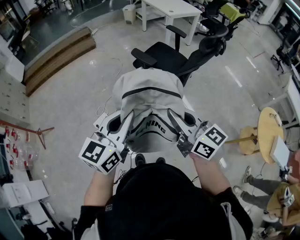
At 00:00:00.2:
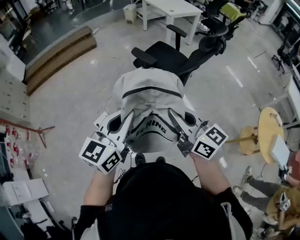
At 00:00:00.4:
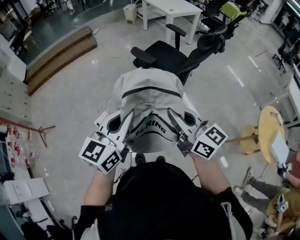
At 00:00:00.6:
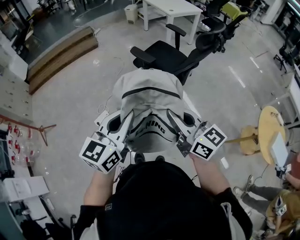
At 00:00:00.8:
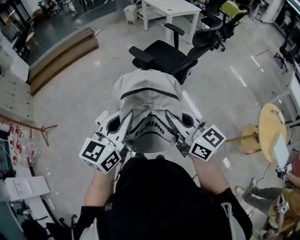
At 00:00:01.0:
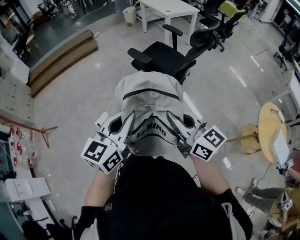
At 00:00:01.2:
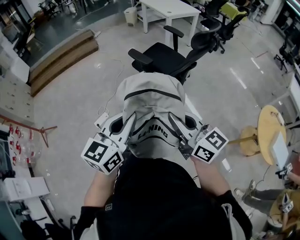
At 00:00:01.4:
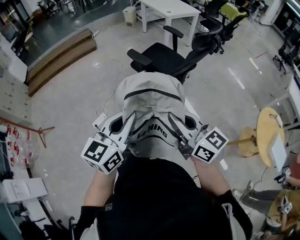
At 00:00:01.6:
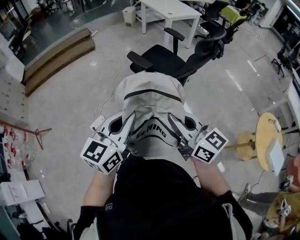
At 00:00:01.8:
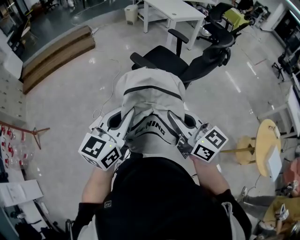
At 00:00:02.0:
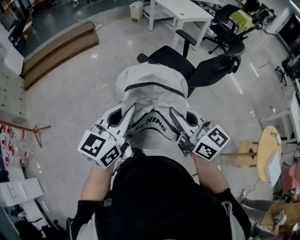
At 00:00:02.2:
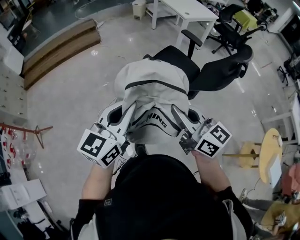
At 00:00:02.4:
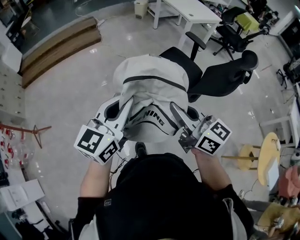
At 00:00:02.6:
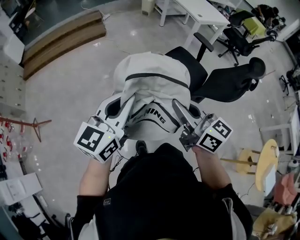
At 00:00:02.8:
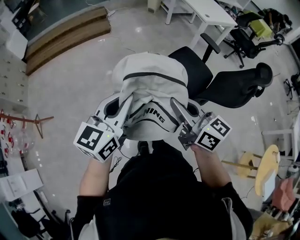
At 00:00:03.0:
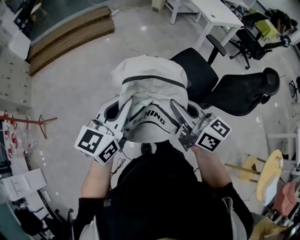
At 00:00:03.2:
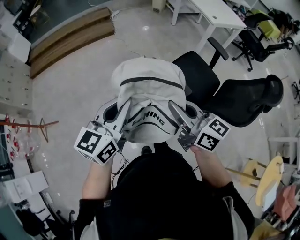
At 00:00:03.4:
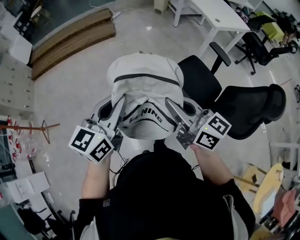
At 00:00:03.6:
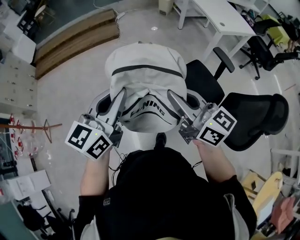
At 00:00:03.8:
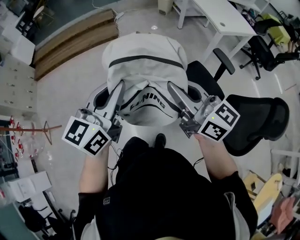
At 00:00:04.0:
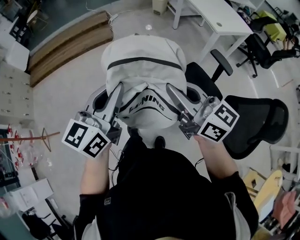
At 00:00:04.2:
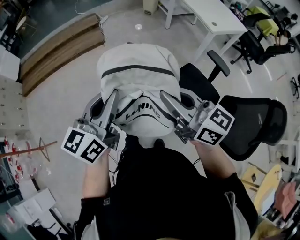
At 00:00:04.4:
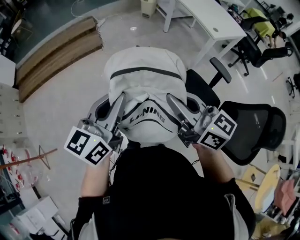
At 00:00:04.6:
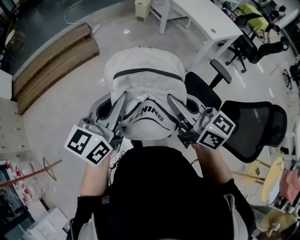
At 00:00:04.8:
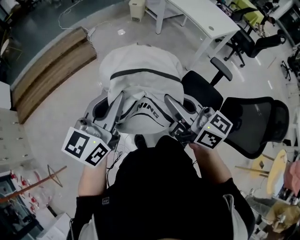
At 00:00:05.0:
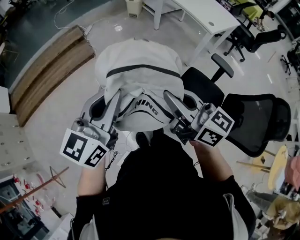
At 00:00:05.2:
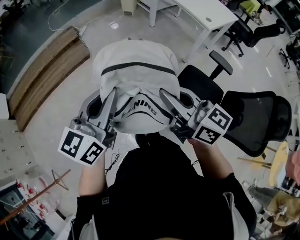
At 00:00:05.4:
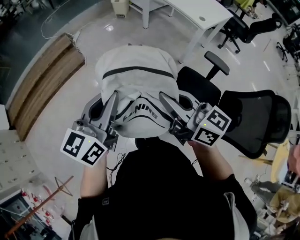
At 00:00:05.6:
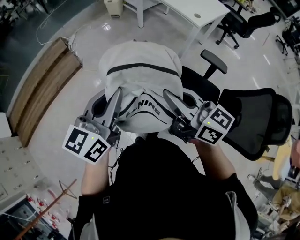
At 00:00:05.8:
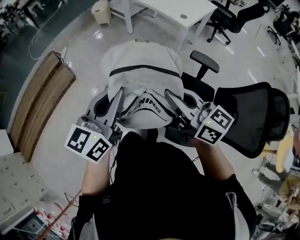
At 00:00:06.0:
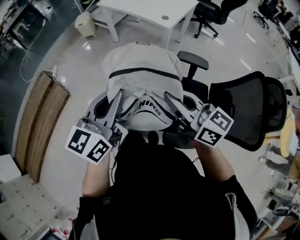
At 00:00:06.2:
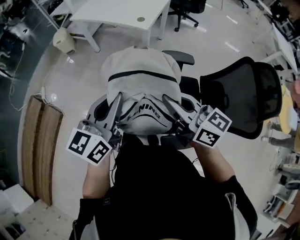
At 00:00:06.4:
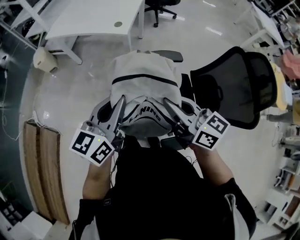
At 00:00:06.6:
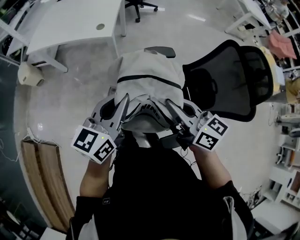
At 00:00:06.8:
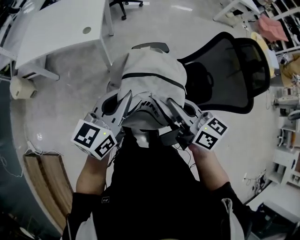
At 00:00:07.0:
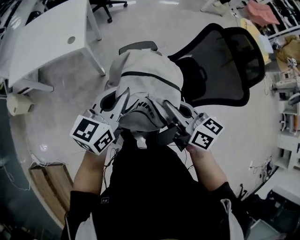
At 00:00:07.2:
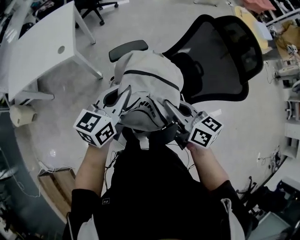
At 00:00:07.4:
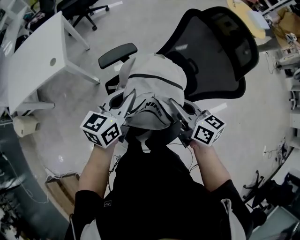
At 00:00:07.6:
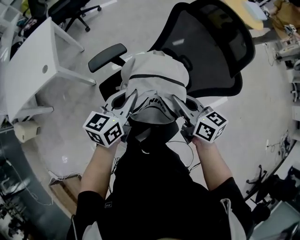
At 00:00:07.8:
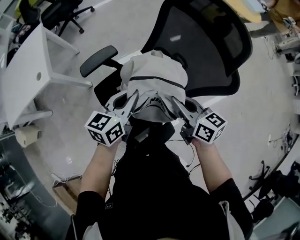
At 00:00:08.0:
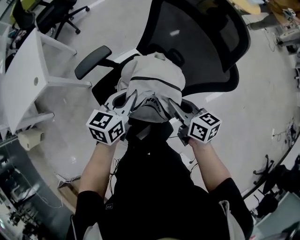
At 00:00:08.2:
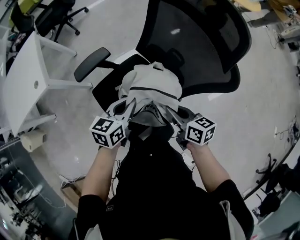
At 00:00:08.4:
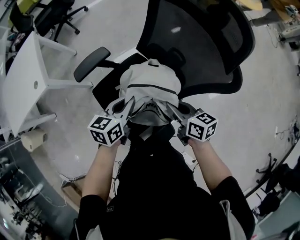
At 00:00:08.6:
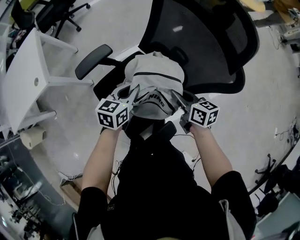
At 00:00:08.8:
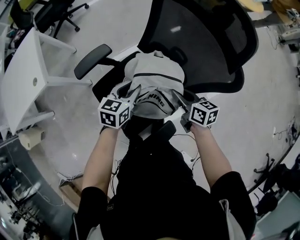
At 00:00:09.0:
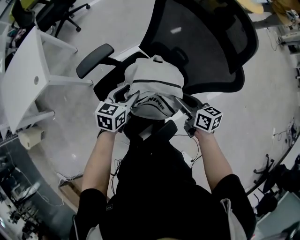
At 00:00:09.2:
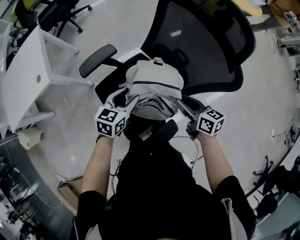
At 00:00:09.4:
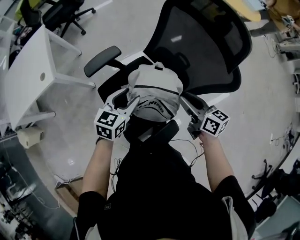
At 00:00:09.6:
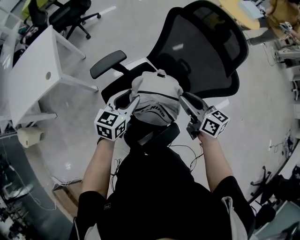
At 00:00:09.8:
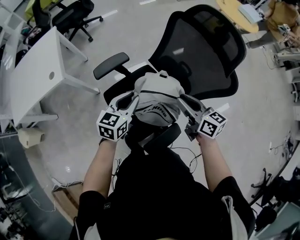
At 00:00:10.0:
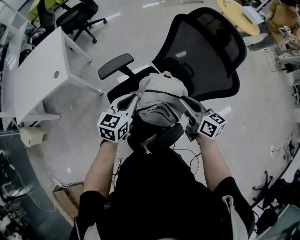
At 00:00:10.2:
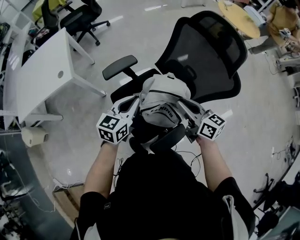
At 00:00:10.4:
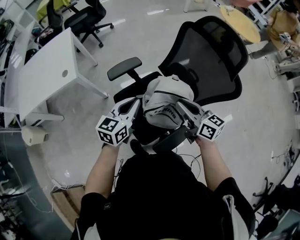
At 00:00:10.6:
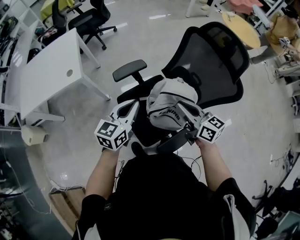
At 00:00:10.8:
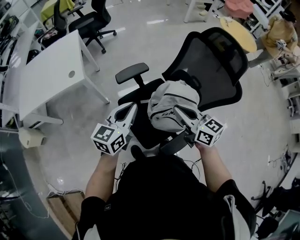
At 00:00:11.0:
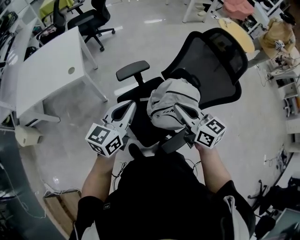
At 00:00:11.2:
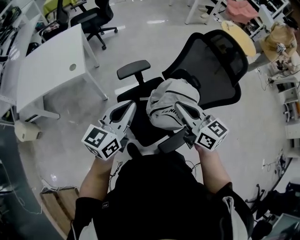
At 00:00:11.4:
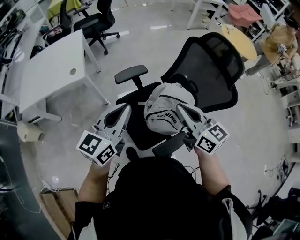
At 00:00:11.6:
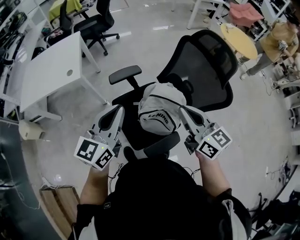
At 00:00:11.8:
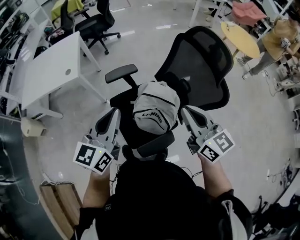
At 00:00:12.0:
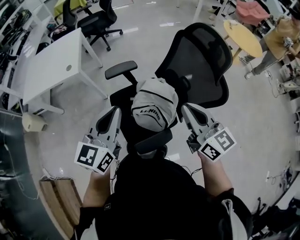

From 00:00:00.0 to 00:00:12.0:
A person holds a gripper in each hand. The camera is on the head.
From 00:00:00.0 to 00:00:01.6: Both grippers travel together to the right, some 5 cm.
From 00:00:01.6 to 00:00:03.0: The grippers both shift forward and to the left by about 40 cm.
From 00:00:03.0 to 00:00:04.4: The two grippers go some 35 cm forward.
From 00:00:04.4 to 00:00:06.0: The left gripper changes place by about 35 cm, and changes its angle by roughly 30 degrees. Meanwhile the right gripper shifts by about 25 cm, and turns by about 30 degrees.
From 00:00:06.0 to 00:00:07.6: The right gripper changes place by roughly 35 cm, and turns by about 70 degrees. The left gripper ends up some 40 cm from where it was, and rotates about 70 degrees.
From 00:00:07.6 to 00:00:09.0: The right gripper moves downward and to the right, approximately 15 cm, and opens its fingers. Meanwhile the left gripper shifts about 15 cm downward, rotates approximately 20 degrees, and opens its fingers.
From 00:00:09.0 to 00:00:10.4: The left gripper goes about 20 cm upward, to the left and backward, and closes. The right gripper goes roughly 20 cm upward and to the left, and swivels approximately 20 degrees.
From 00:00:10.4 to 00:00:12.0: The right gripper goes approximately 15 cm upward, to the right and backward, and changes its angle by about 20 degrees, while the left gripper travels upward and backward by roughly 20 cm, and swivels about 20 degrees.

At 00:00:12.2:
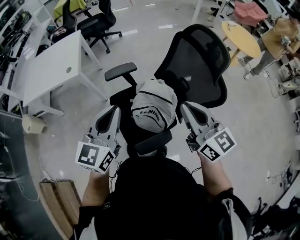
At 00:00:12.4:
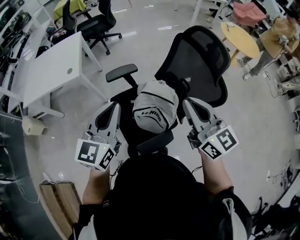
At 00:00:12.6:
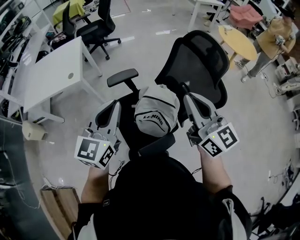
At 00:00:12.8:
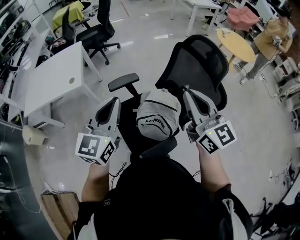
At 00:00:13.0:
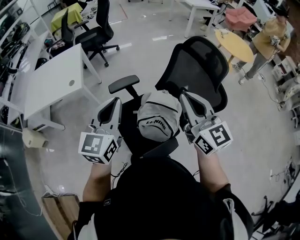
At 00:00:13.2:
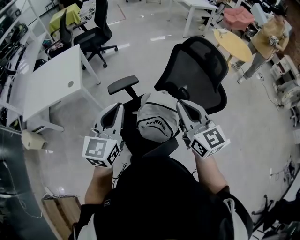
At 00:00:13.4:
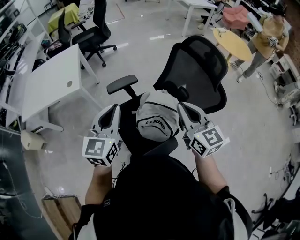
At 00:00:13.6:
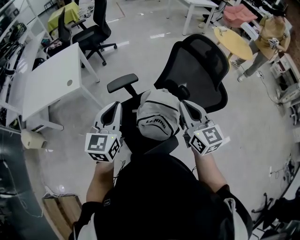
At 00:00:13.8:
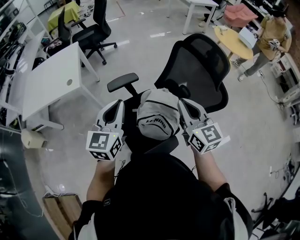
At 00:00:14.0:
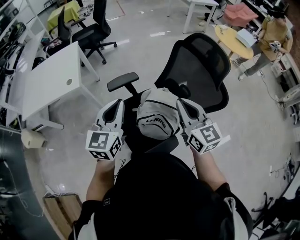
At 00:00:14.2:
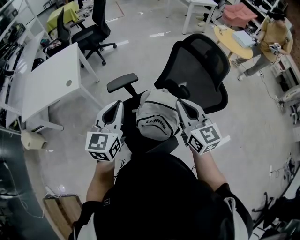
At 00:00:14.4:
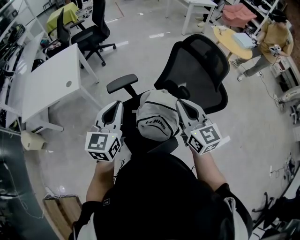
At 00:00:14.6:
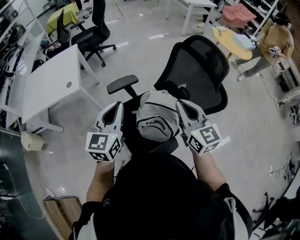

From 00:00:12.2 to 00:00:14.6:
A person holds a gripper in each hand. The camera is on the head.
From 00:00:12.2 to 00:00:13.4: The right gripper travels upward and back again, some 5 cm each way; the left gripper is displaced to the left by approximately 5 cm.
From 00:00:13.4 to 00:00:14.6: There are only small adjustments of the grippers.

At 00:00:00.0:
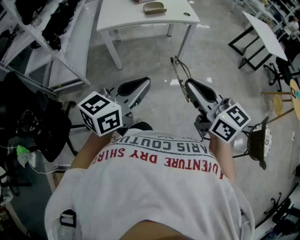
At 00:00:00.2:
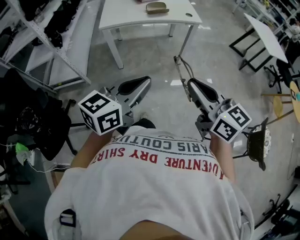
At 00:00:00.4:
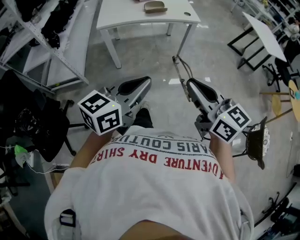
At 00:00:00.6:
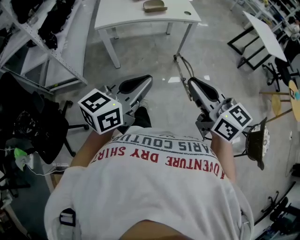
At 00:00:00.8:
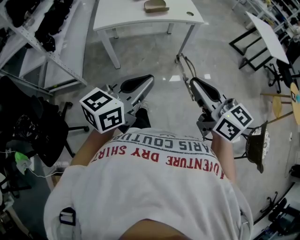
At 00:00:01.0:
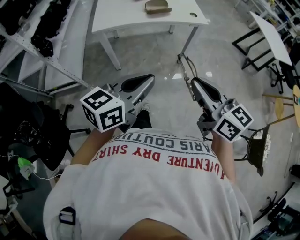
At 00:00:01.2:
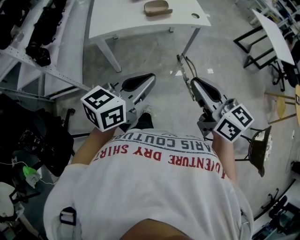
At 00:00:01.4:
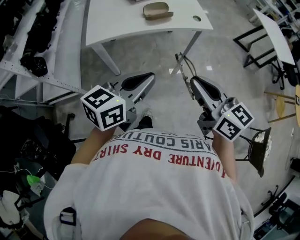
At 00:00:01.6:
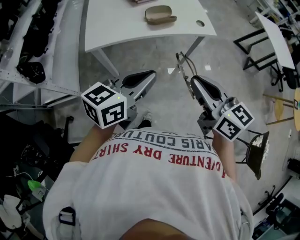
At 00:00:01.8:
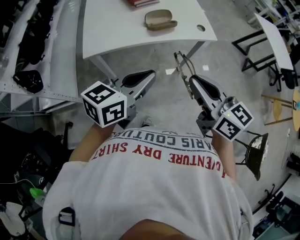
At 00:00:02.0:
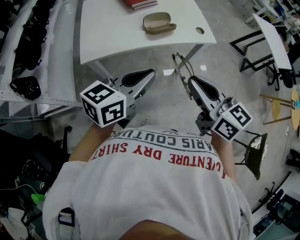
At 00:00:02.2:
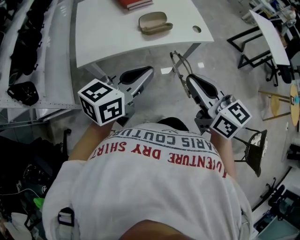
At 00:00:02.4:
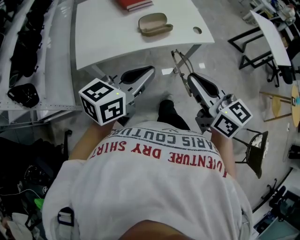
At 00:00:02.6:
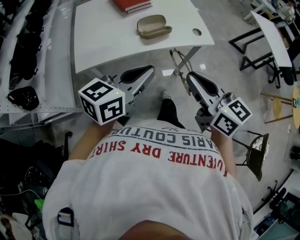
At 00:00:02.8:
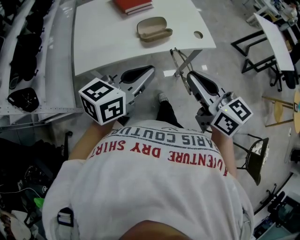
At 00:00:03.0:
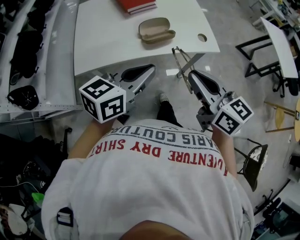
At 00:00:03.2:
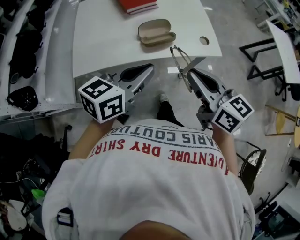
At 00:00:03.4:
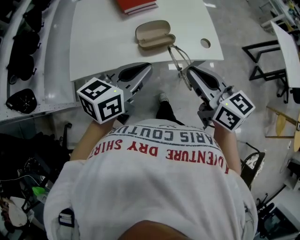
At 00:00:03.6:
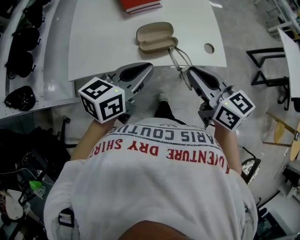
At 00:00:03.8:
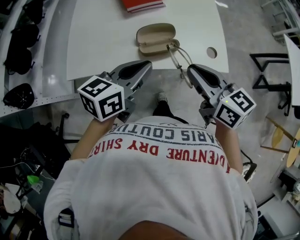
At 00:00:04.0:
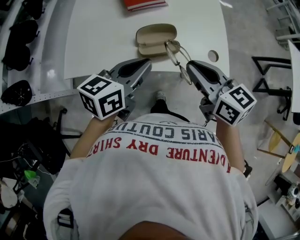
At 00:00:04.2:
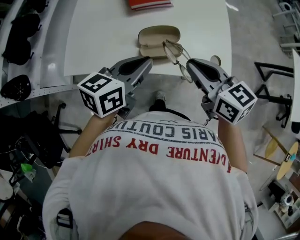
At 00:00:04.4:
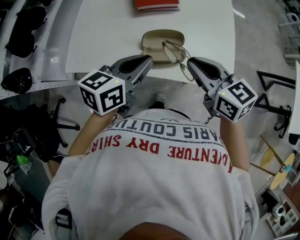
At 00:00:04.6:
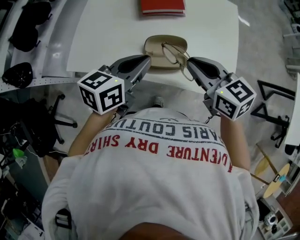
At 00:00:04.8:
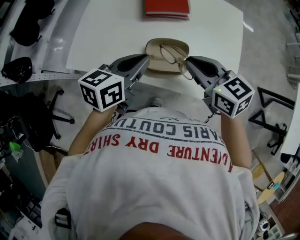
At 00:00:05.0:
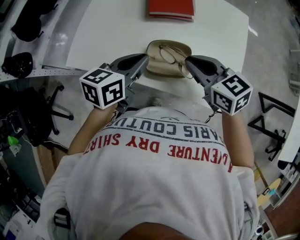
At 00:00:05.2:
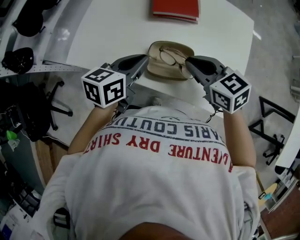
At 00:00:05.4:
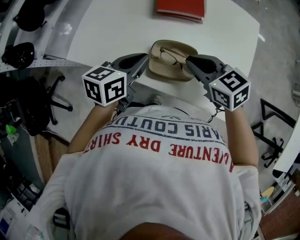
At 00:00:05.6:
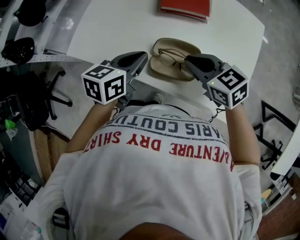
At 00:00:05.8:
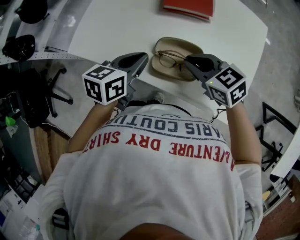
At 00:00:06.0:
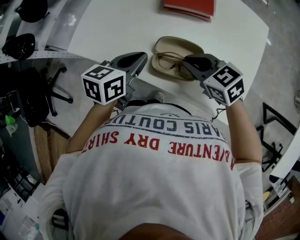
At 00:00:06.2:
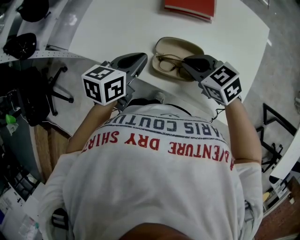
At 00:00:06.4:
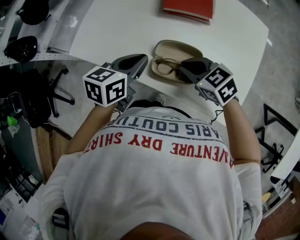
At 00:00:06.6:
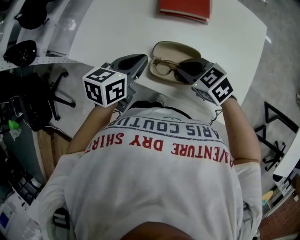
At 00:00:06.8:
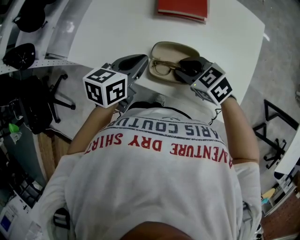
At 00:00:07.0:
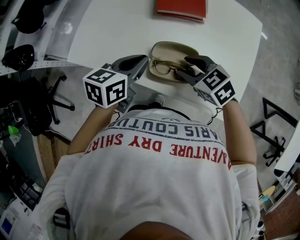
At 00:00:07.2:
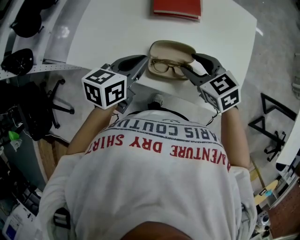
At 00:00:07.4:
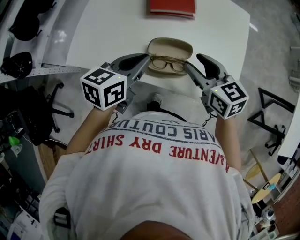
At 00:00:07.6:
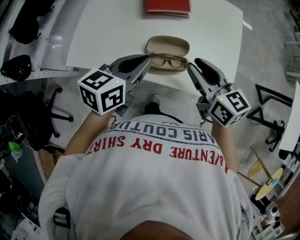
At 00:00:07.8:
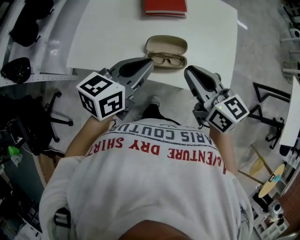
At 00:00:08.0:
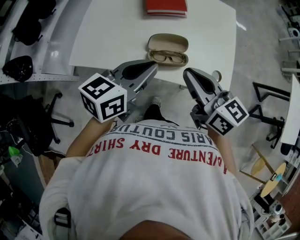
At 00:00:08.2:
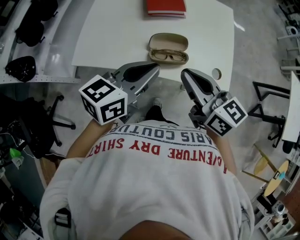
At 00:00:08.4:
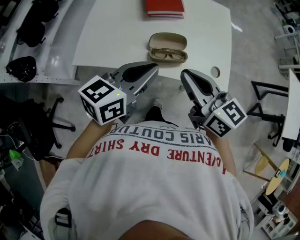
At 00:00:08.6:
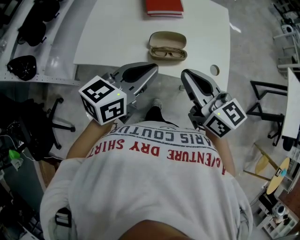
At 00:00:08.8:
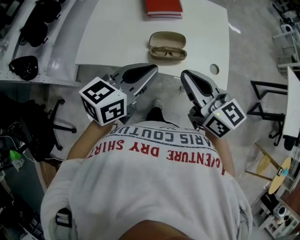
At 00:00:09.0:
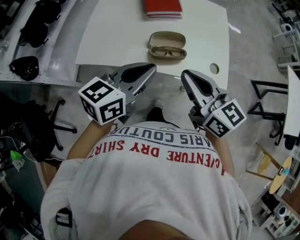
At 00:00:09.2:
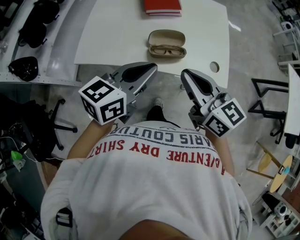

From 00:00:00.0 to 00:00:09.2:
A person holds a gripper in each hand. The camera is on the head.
From 00:00:00.0 to 00:00:01.6: Both grippers travel together forward, roughly 35 cm.
From 00:00:01.6 to 00:00:03.0: The two grippers go some 15 cm forward.
From 00:00:03.0 to 00:00:04.6: The right gripper shifts by approximately 25 cm, and changes its angle by about 30 degrees. The left gripper moves roughly 20 cm, and swivels roughly 30 degrees.
From 00:00:04.6 to 00:00:06.2: The right gripper is displaced downward and forward by roughly 15 cm, and changes its angle by about 30 degrees; the left gripper moves downward, some 10 cm.
From 00:00:06.2 to 00:00:07.6: Both grippers move upward, approximately 10 cm. The right gripper changes its angle by approximately 40 degrees, and opens up.
From 00:00:07.6 to 00:00:09.2: The two grippers go some 15 cm backward and upward. The right gripper closes up.
